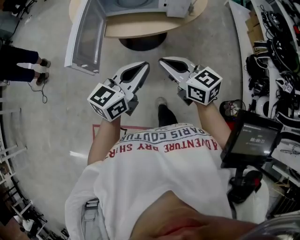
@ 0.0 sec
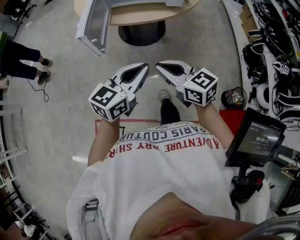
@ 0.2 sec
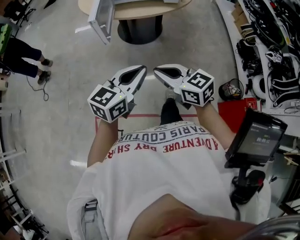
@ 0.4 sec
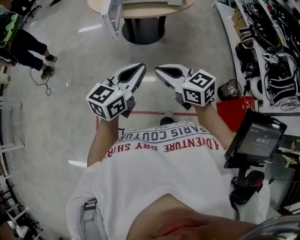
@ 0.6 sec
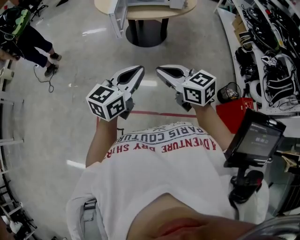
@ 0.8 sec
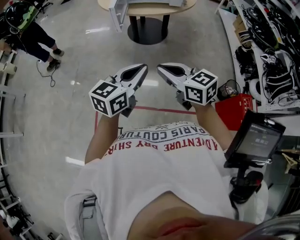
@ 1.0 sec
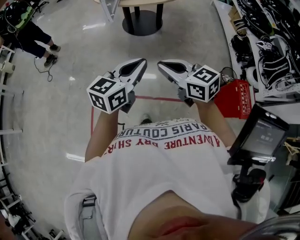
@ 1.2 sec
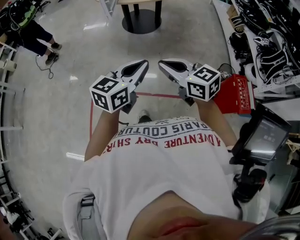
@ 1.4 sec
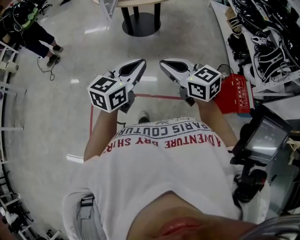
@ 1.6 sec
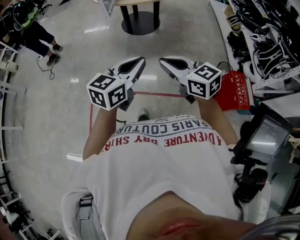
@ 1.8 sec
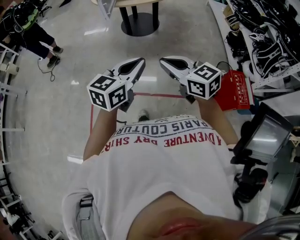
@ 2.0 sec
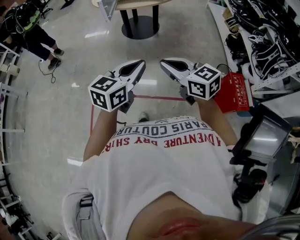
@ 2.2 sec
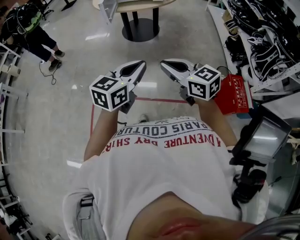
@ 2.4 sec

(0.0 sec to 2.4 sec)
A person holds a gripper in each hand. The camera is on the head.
0.0 sec - 1.2 sec: The right gripper shifts by some 60 cm.
1.2 sec - 2.4 sec: The right gripper shifts by approximately 15 cm.

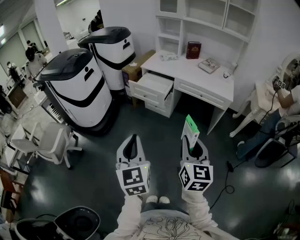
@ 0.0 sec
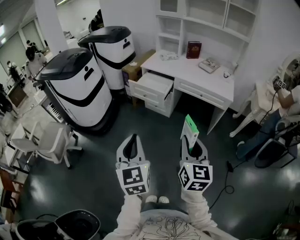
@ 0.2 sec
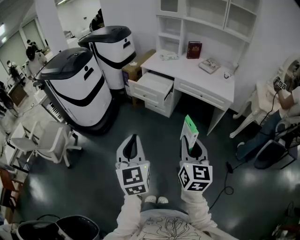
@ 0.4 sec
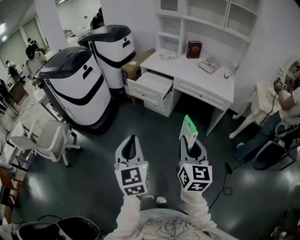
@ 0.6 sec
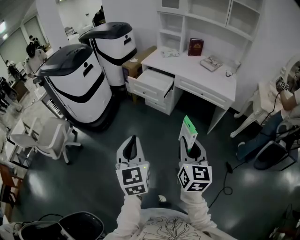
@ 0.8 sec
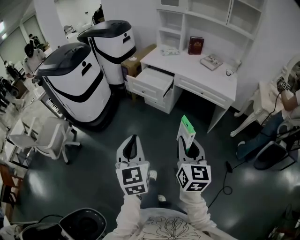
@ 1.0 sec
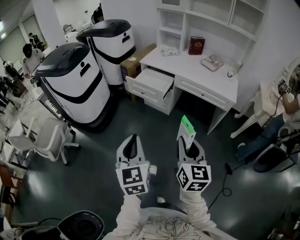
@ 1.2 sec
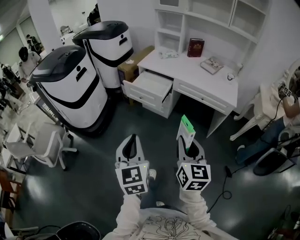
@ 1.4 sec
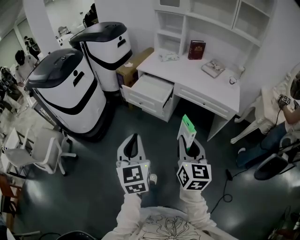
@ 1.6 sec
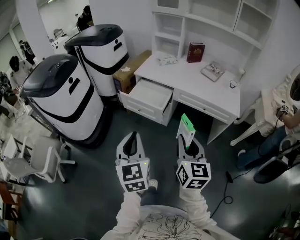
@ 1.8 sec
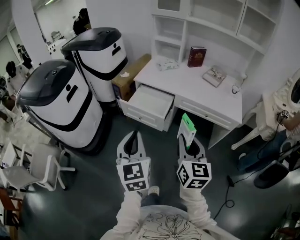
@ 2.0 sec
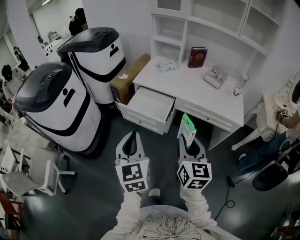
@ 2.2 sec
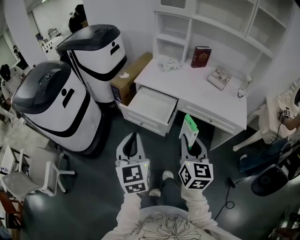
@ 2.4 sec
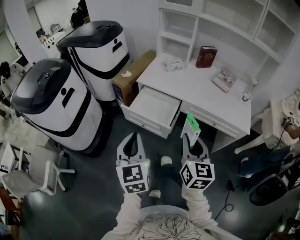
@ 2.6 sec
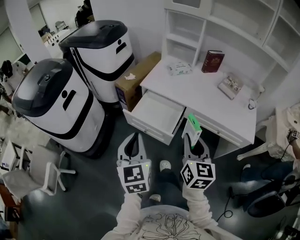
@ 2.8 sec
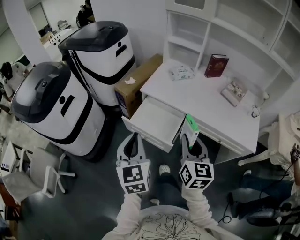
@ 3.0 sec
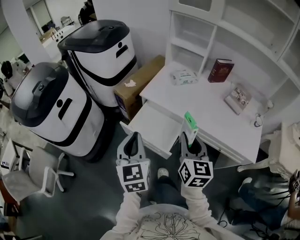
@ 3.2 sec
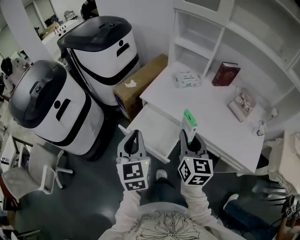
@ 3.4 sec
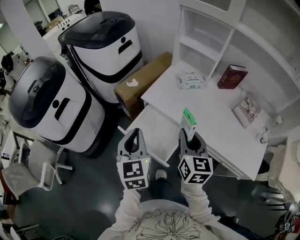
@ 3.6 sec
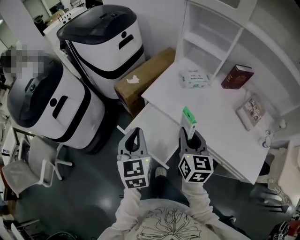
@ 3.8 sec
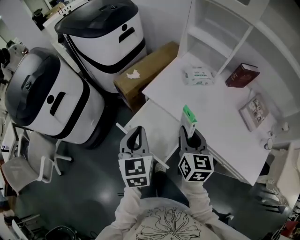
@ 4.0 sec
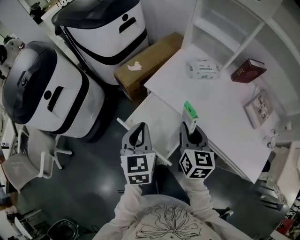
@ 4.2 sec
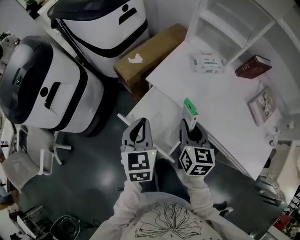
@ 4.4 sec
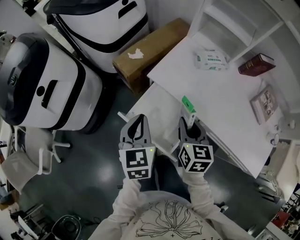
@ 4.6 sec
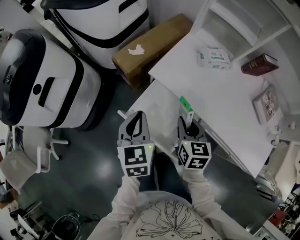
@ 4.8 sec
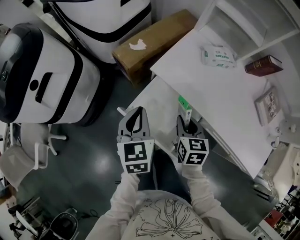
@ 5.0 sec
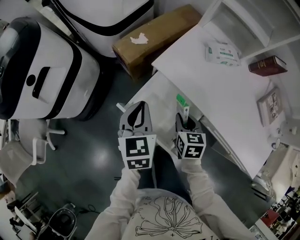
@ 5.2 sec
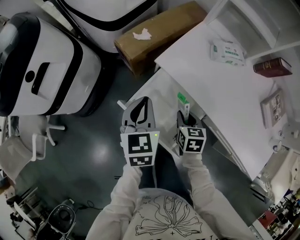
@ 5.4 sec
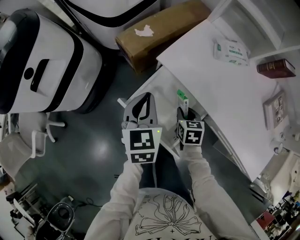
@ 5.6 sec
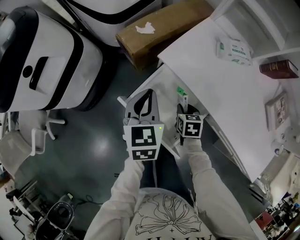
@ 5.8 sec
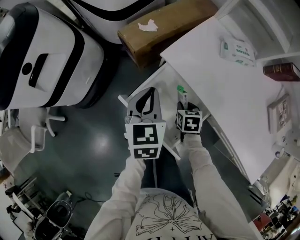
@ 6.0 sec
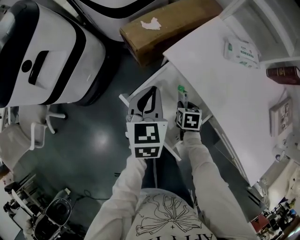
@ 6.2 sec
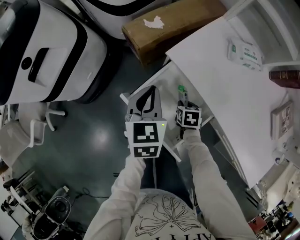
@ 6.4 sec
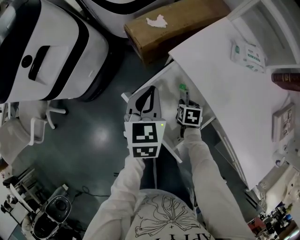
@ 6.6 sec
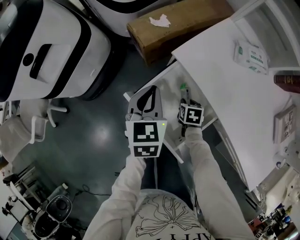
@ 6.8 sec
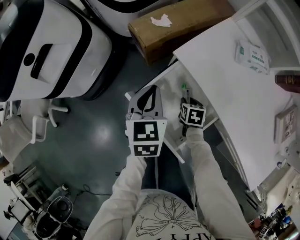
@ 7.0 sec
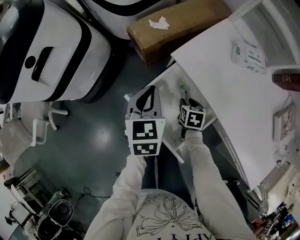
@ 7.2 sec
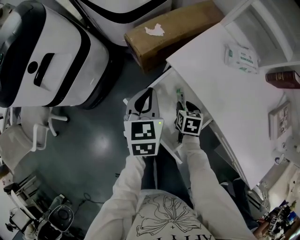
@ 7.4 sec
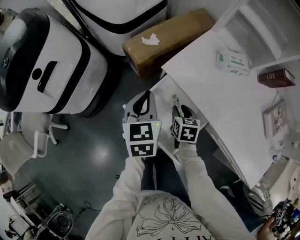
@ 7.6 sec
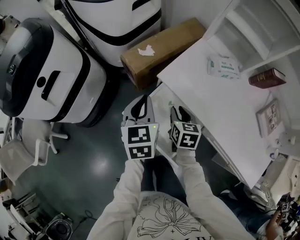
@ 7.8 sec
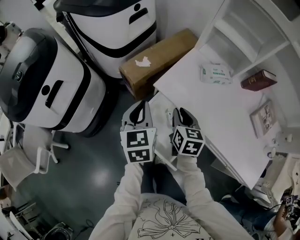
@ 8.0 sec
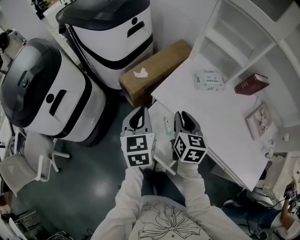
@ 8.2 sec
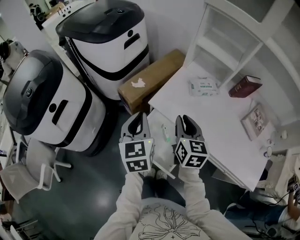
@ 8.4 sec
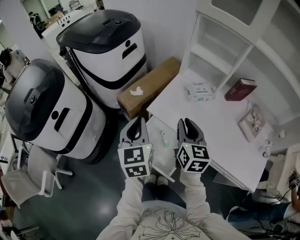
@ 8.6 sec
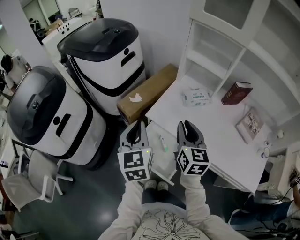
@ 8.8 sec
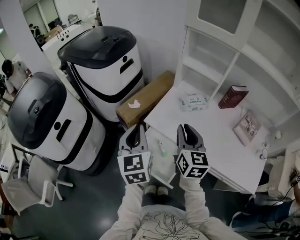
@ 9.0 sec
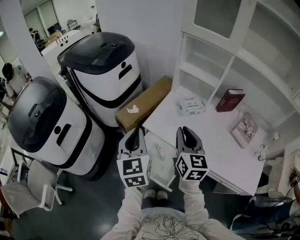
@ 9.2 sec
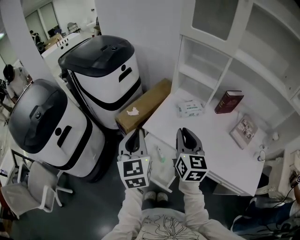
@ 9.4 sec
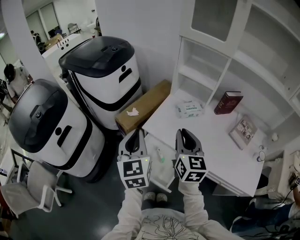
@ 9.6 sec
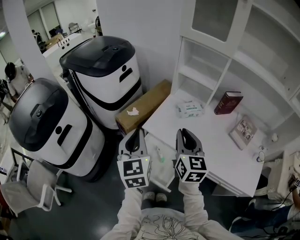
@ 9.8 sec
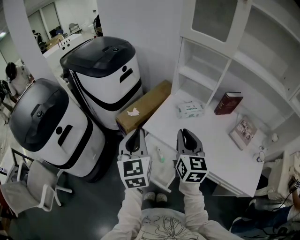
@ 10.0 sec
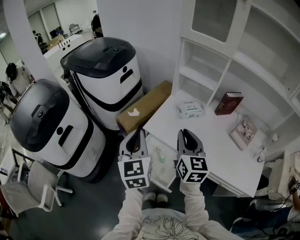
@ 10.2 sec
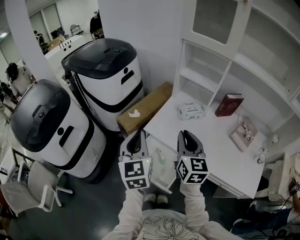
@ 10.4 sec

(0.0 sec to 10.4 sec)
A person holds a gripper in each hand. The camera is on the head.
0.0 sec - 1.4 sec: The grippers both shift forward by roughly 10 cm.
1.4 sec - 3.0 sec: The two grippers travel together, forward, about 40 cm.
3.0 sec - 4.4 sec: The grippers both shift forward and downward by about 25 cm.
4.4 sec - 6.0 sec: The left gripper moves downward and forward, some 15 cm, while the right gripper goes some 30 cm downward, and tilts its fingers approximately 30 degrees downward.
6.0 sec - 7.4 sec: The grippers move only a little.
7.4 sec - 9.0 sec: The right gripper travels upward by roughly 40 cm, and points its fingers some 50 degrees further upward. The left gripper shifts about 25 cm upward, and turns by some 20 degrees.
9.0 sec - 10.4 sec: The grippers make only small movements.

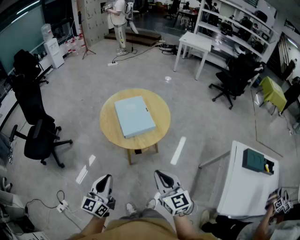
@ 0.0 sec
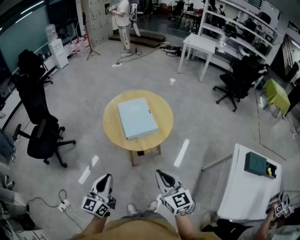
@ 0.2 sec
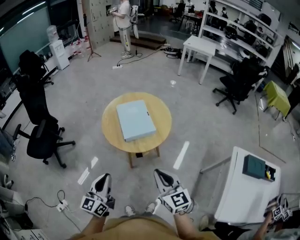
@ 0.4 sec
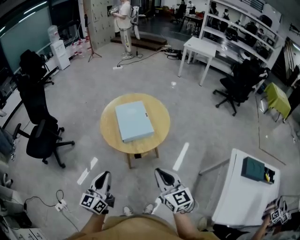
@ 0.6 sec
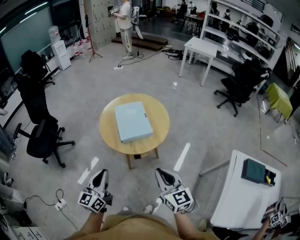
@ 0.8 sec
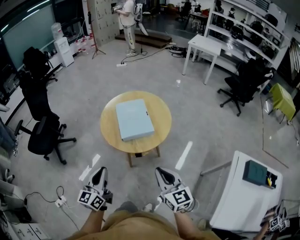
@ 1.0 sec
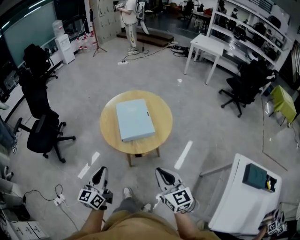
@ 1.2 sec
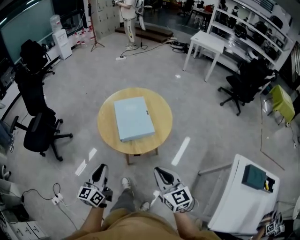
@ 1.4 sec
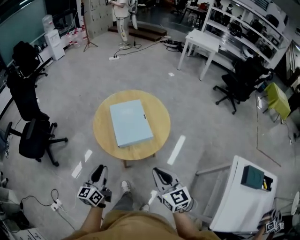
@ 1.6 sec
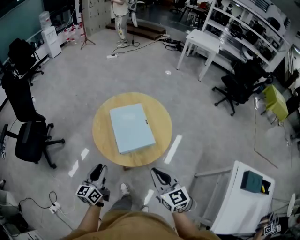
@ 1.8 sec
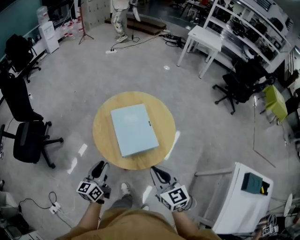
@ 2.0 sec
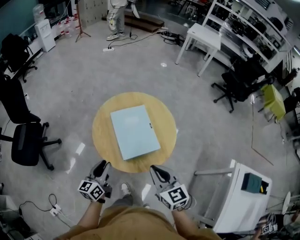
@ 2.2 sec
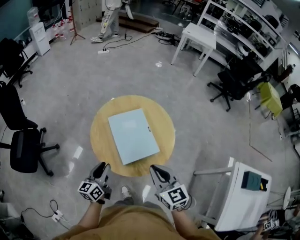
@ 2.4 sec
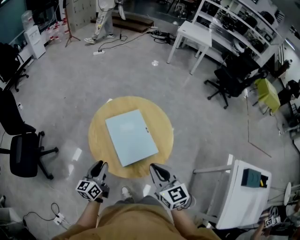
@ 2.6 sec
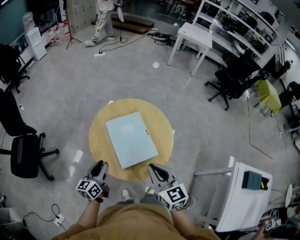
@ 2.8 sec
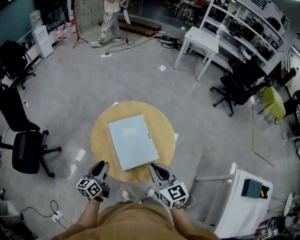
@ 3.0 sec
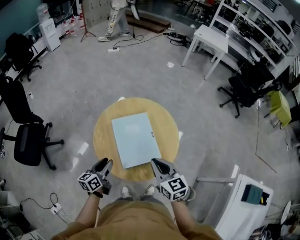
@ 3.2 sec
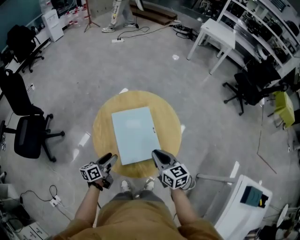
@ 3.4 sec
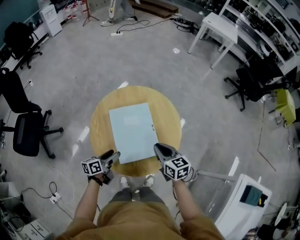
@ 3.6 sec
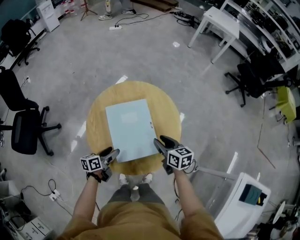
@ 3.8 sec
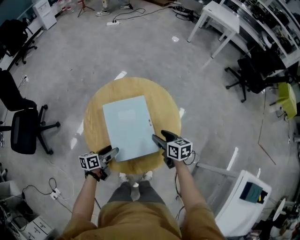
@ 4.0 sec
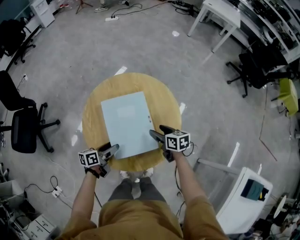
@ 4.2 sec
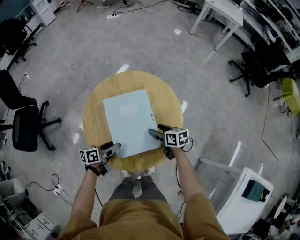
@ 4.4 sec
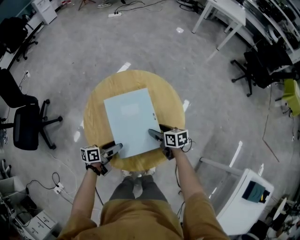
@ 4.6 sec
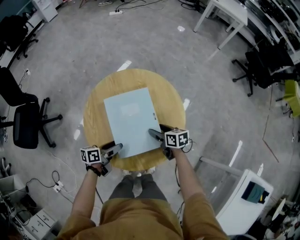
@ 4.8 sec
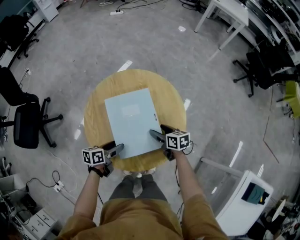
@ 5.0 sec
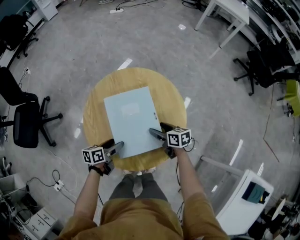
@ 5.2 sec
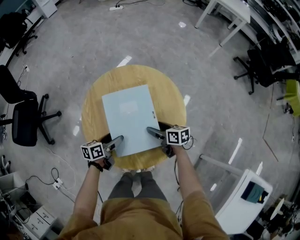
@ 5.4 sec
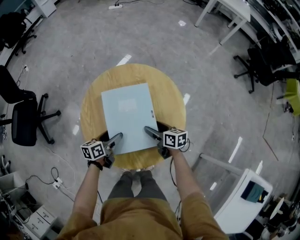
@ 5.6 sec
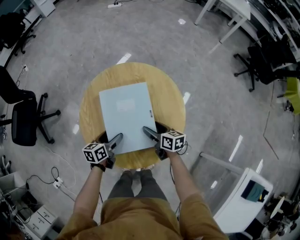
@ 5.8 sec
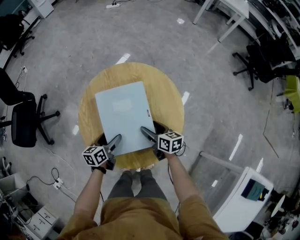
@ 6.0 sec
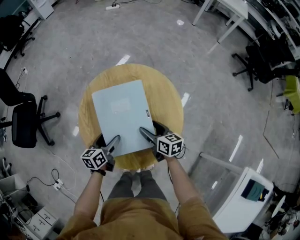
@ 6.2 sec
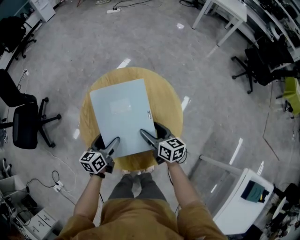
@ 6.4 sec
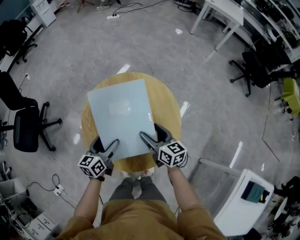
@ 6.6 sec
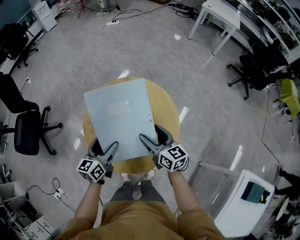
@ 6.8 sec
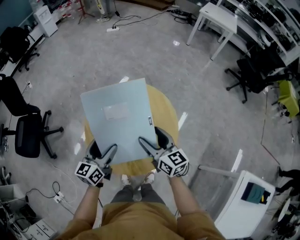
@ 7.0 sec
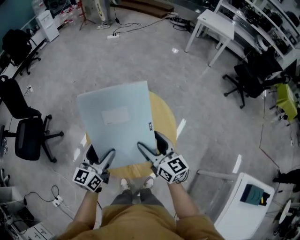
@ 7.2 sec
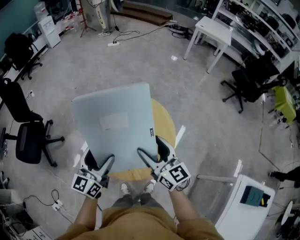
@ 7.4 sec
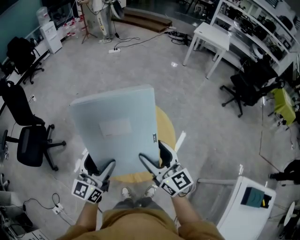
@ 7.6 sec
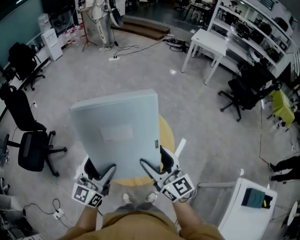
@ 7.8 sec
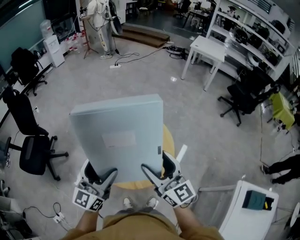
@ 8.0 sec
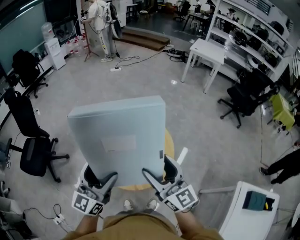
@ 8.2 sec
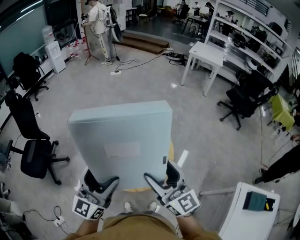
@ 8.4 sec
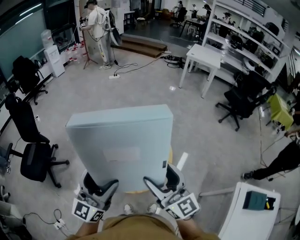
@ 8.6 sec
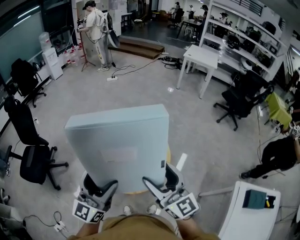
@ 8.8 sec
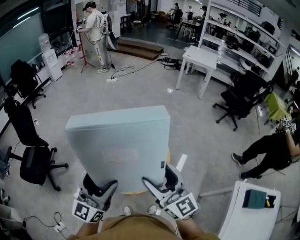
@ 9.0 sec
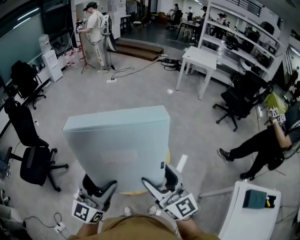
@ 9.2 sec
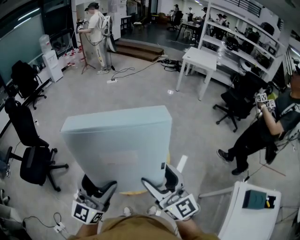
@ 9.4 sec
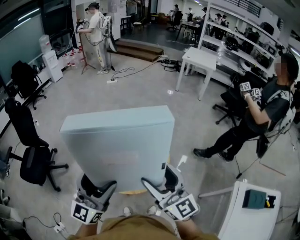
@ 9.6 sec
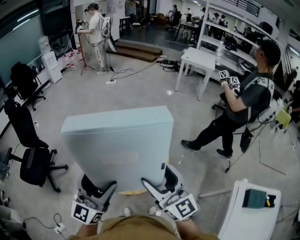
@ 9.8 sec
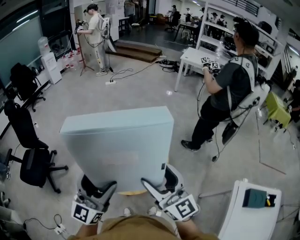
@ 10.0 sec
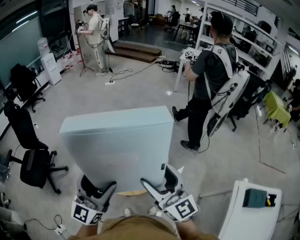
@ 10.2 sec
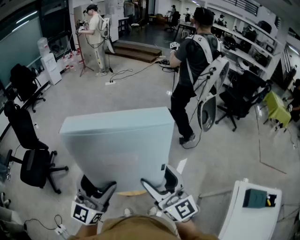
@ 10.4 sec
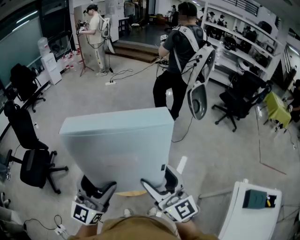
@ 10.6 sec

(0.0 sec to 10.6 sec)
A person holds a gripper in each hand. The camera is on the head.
0.0 sec - 1.6 sec: The left gripper heads forward and downward, covering some 20 cm; the right gripper heads forward and to the right, covering approximately 15 cm.
1.6 sec - 3.0 sec: Both grippers move forward, approximately 20 cm.
3.0 sec - 4.6 sec: The right gripper goes roughly 35 cm downward and forward, turns by roughly 40 degrees, and opens; the left gripper travels downward, to the right and forward by roughly 20 cm, turns by some 40 degrees, and opens up.
4.6 sec - 6.0 sec: The left gripper changes its angle by some 30 degrees.
6.0 sec - 7.6 sec: The two grippers go approximately 35 cm upward. The left gripper angles its fingers upward, by some 30 degrees; the right gripper angles its fingers upward, by about 30 degrees.
7.6 sec - 9.0 sec: The right gripper goes about 20 cm backward and upward. Meanwhile the left gripper heads upward and backward, covering about 15 cm.
9.0 sec - 10.6 sec: There are only small adjustments of the grippers.
